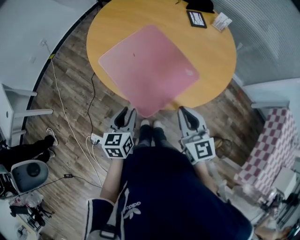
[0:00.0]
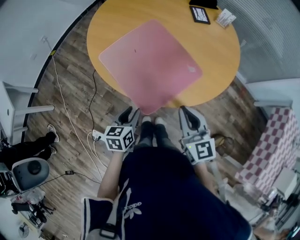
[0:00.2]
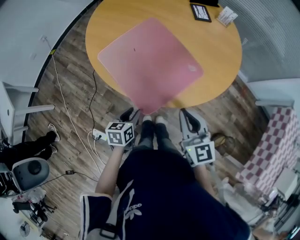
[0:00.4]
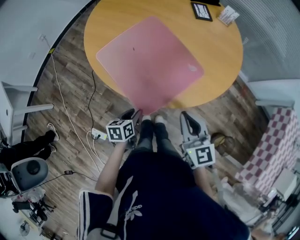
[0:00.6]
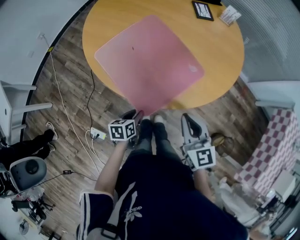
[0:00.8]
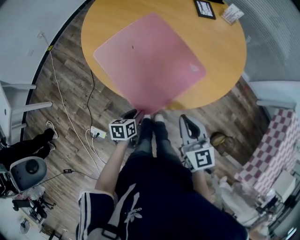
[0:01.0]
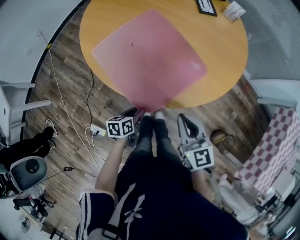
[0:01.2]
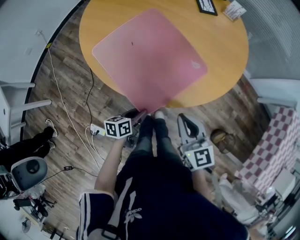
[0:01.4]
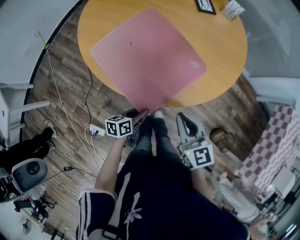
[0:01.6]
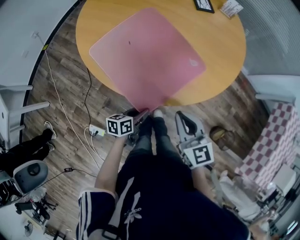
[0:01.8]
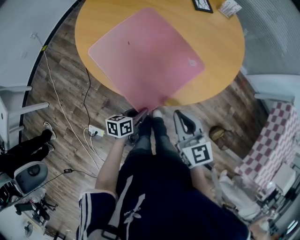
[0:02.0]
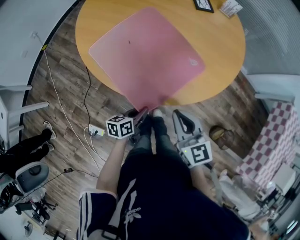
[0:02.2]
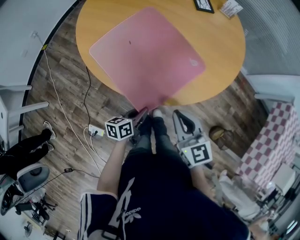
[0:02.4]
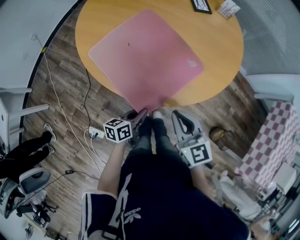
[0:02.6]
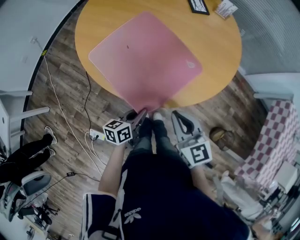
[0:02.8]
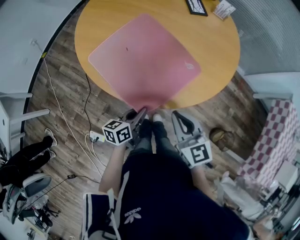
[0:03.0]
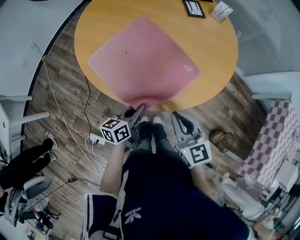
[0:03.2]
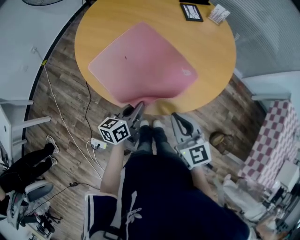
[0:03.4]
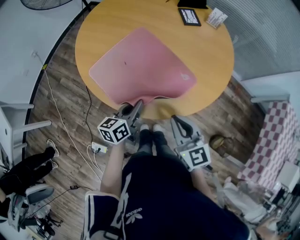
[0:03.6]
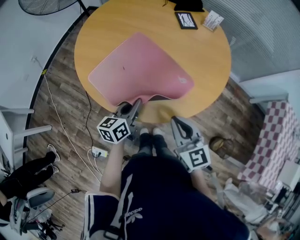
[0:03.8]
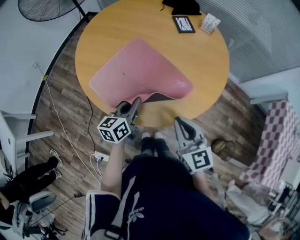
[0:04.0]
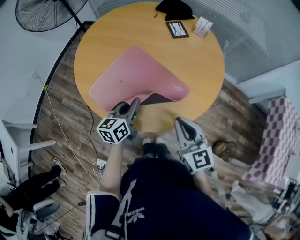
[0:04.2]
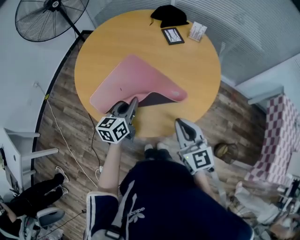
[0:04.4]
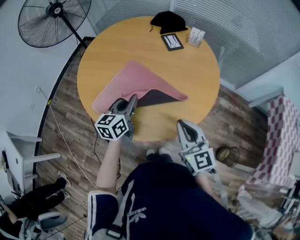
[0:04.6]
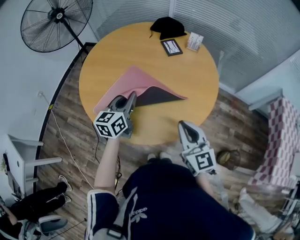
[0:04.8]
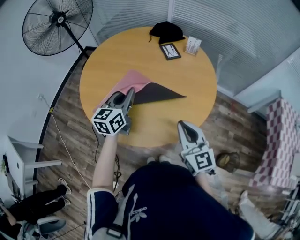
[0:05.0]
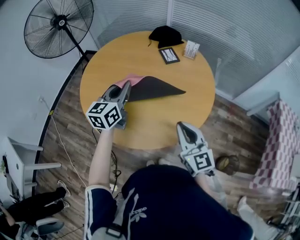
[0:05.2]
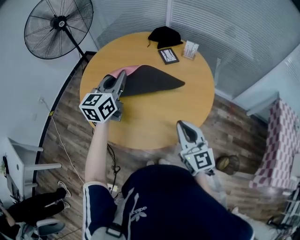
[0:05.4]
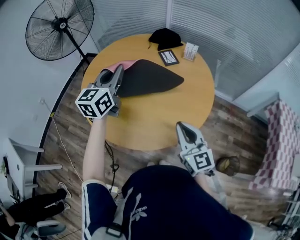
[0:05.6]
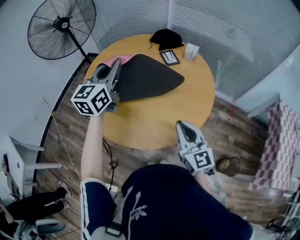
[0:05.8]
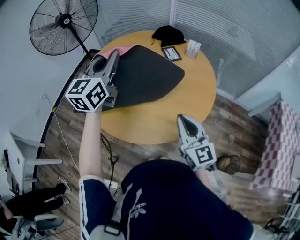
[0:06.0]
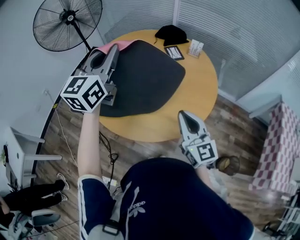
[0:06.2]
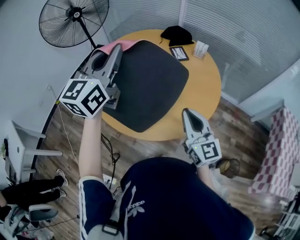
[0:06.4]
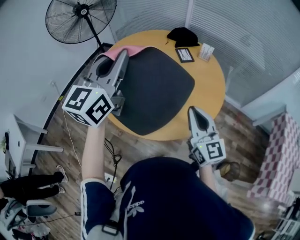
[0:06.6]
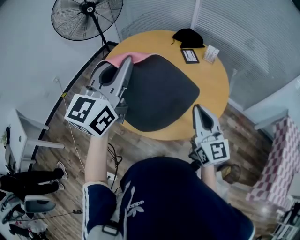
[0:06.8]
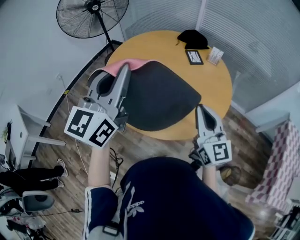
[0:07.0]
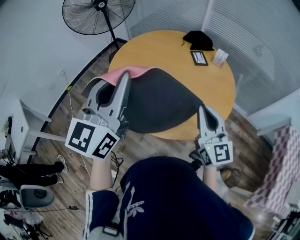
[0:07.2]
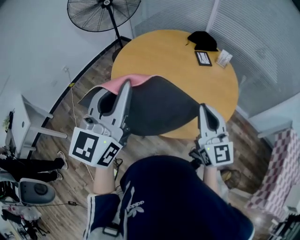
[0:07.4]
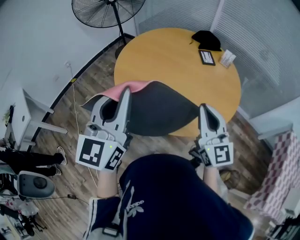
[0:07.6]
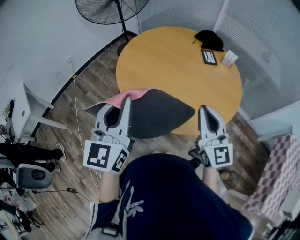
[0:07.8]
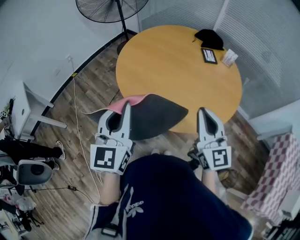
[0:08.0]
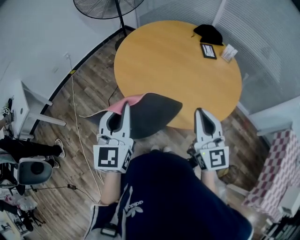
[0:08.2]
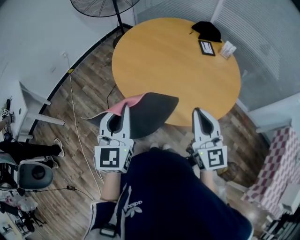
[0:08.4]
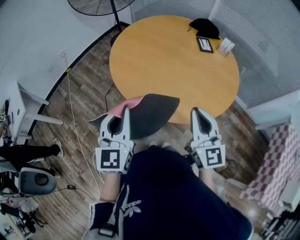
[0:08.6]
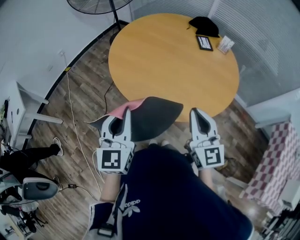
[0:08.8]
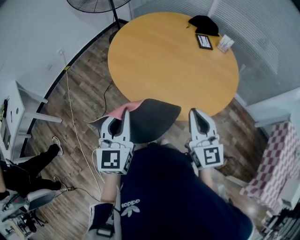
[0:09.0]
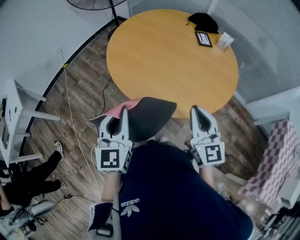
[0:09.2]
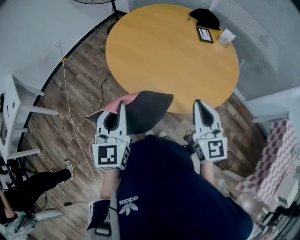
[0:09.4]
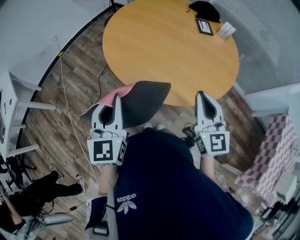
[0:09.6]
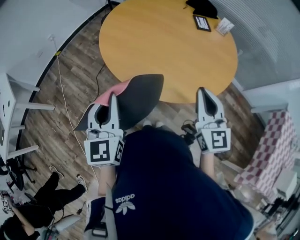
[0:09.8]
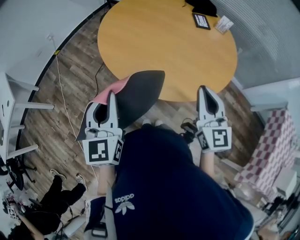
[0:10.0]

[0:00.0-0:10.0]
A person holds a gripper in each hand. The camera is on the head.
0:00.0 to 0:01.4: The left gripper travels downward by about 15 cm, and swivels approximately 40 degrees. The right gripper moves downward, about 5 cm.
0:01.4 to 0:02.8: The left gripper shifts about 5 cm upward, and closes its fingers.
0:02.8 to 0:04.2: The left gripper travels forward and upward by about 20 cm, and swivels some 20 degrees; the right gripper moves forward and upward, approximately 10 cm.
0:04.2 to 0:05.8: The left gripper is displaced upward and forward by about 30 cm, and turns by approximately 30 degrees. The right gripper travels upward by roughly 5 cm.
0:05.8 to 0:07.2: The right gripper moves upward, some 5 cm. The left gripper goes roughly 20 cm backward.
0:07.2 to 0:08.6: The right gripper shifts some 5 cm backward. Meanwhile the left gripper travels downward and backward by approximately 20 cm, and changes its angle by roughly 30 degrees.
0:08.6 to 0:10.0: The right gripper goes approximately 5 cm to the right.

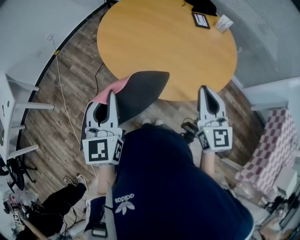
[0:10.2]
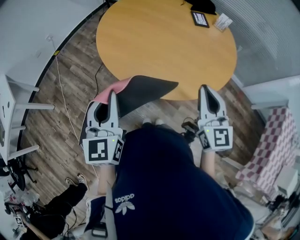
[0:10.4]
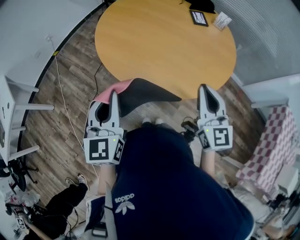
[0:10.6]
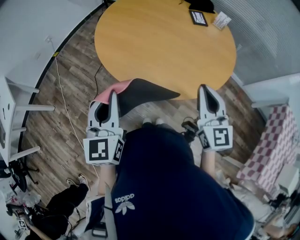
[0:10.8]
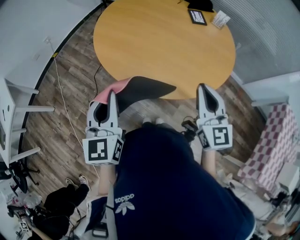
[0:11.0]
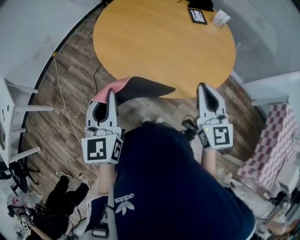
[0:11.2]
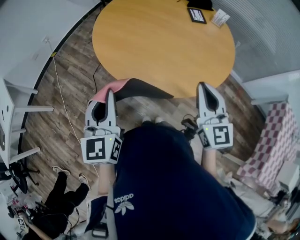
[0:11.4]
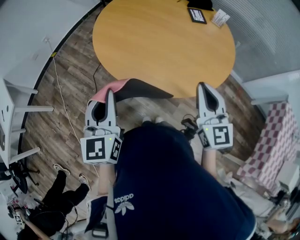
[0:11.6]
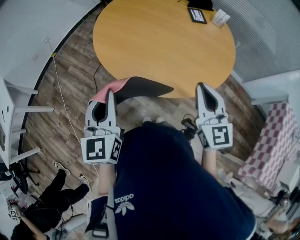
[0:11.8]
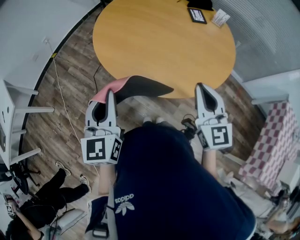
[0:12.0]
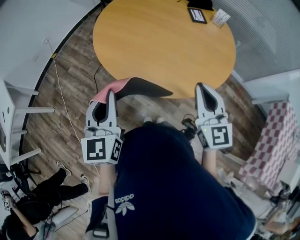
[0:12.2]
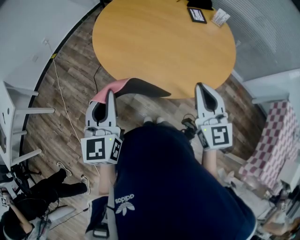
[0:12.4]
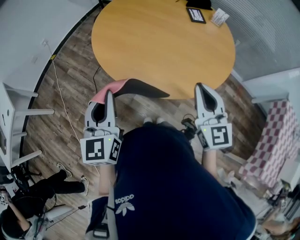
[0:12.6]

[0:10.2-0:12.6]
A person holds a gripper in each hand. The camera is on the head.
0:10.2 to 0:12.6: The grippers make only small movements.

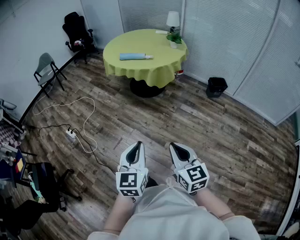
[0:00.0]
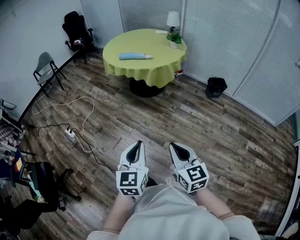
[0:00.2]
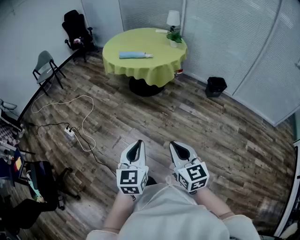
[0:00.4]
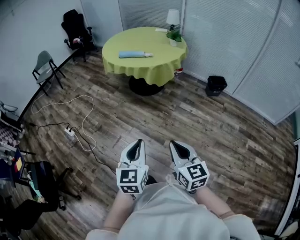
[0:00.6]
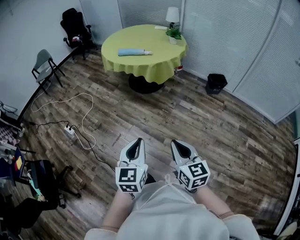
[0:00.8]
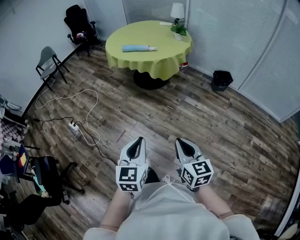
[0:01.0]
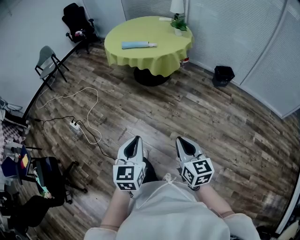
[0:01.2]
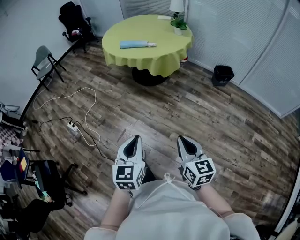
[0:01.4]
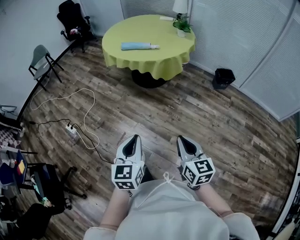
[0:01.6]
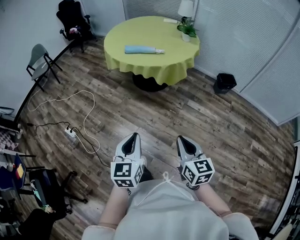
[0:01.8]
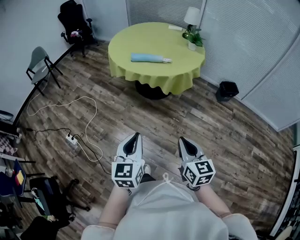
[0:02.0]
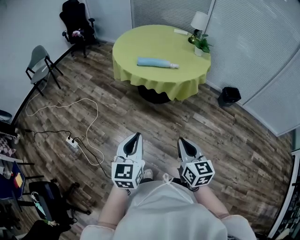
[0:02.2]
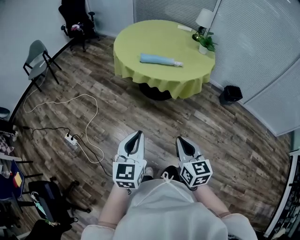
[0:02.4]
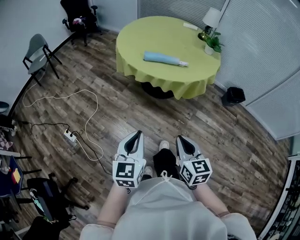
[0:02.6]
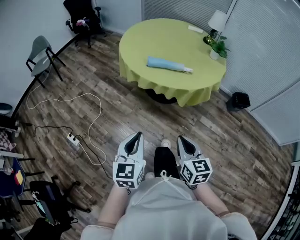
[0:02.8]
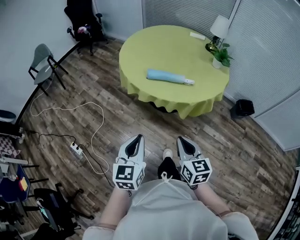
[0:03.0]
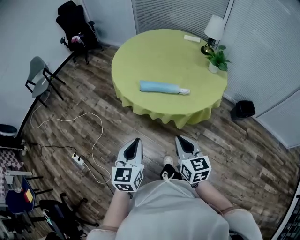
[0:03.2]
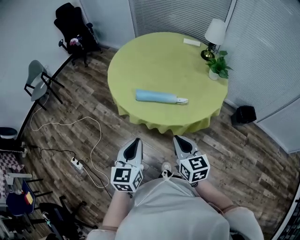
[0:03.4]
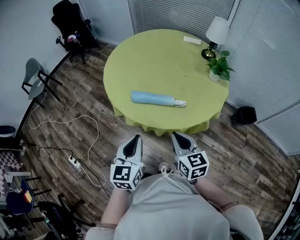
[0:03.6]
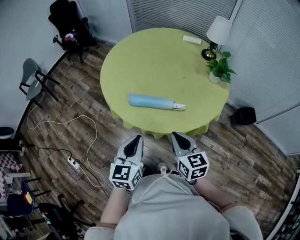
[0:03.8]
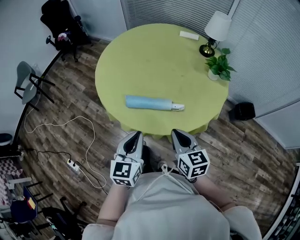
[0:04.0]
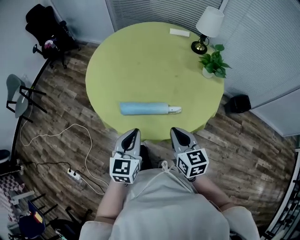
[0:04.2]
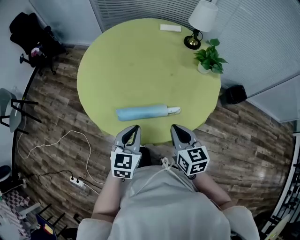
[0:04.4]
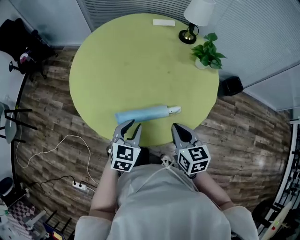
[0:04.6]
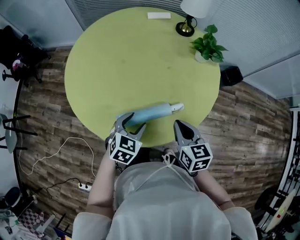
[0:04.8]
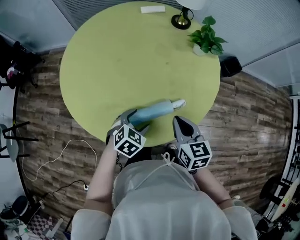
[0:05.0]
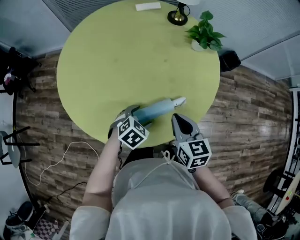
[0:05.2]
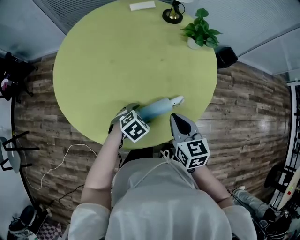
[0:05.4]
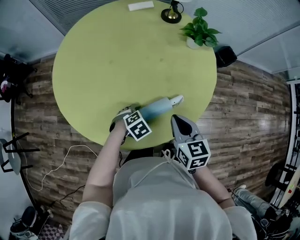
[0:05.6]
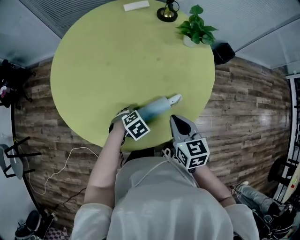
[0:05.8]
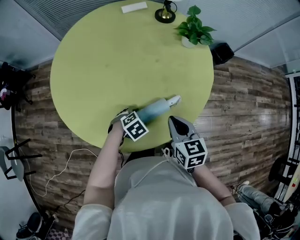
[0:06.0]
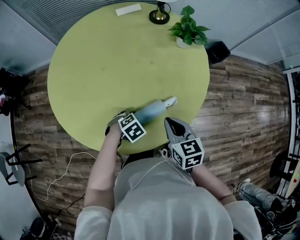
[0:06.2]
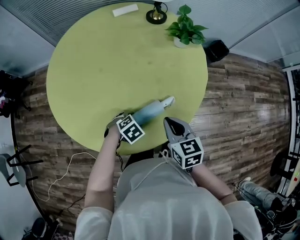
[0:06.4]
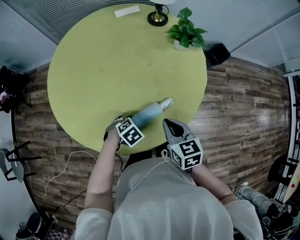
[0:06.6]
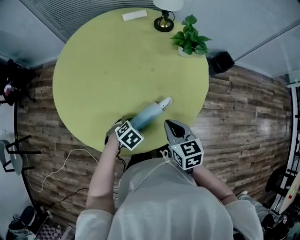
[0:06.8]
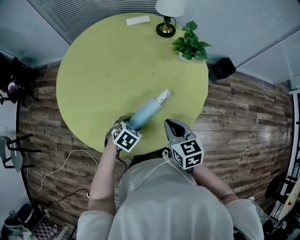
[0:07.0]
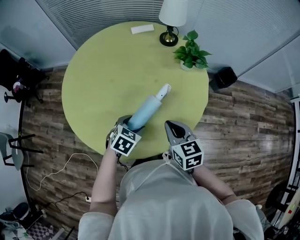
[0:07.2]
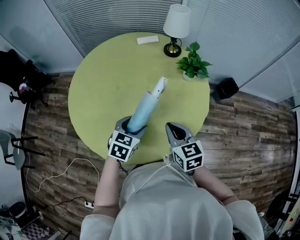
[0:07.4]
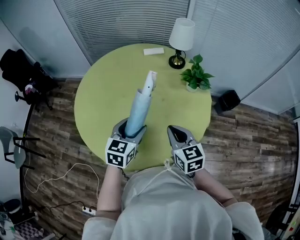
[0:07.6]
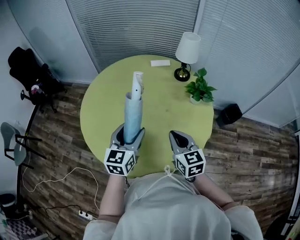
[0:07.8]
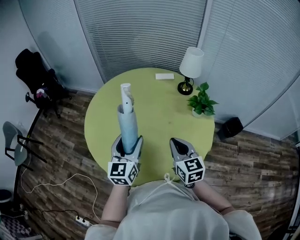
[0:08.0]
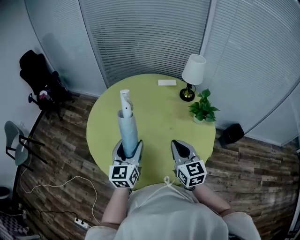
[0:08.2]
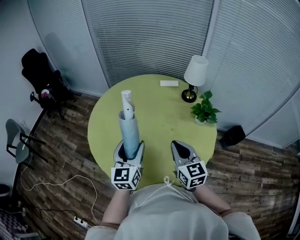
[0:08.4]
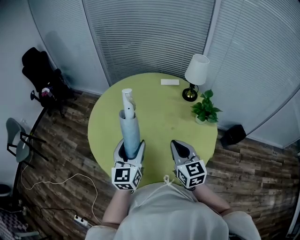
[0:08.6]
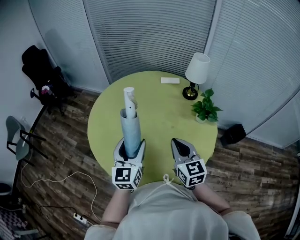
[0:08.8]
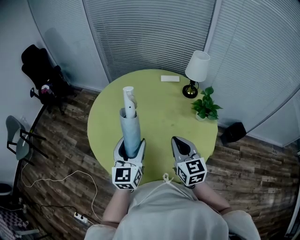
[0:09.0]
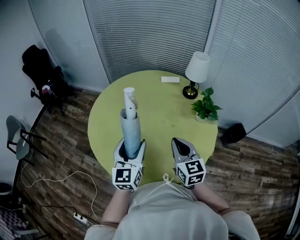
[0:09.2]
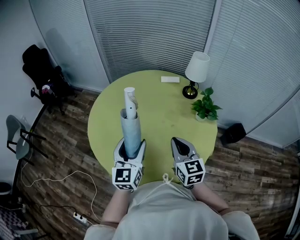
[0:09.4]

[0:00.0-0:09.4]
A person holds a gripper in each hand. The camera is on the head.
0:00.0 to 0:01.6: The left gripper travels forward and to the left by approximately 15 cm. The right gripper goes roughly 15 cm forward.
0:01.6 to 0:03.2: Both grippers are carried forward, some 50 cm.
0:03.2 to 0:04.8: The left gripper shifts by approximately 50 cm, turns by some 60 degrees, and opens its fingers, while the right gripper shifts by about 35 cm, and changes its angle by about 30 degrees.
0:04.8 to 0:06.2: The left gripper heads downward, covering about 15 cm, and angles its fingers downward, by roughly 30 degrees.
0:06.2 to 0:07.8: The left gripper moves upward, about 30 cm, and tilts its fingers some 60 degrees upward. The right gripper moves upward, some 15 cm, and turns by approximately 20 degrees.
0:07.8 to 0:09.4: The left gripper changes place by some 5 cm.

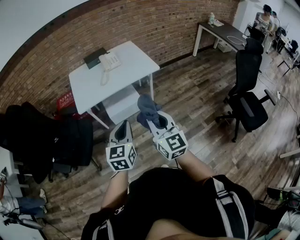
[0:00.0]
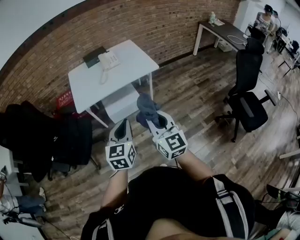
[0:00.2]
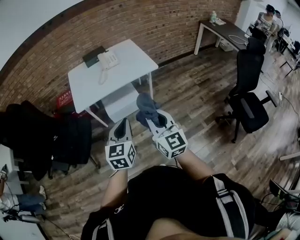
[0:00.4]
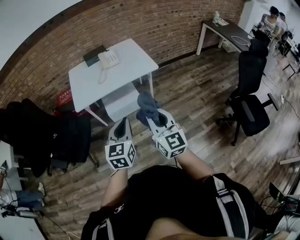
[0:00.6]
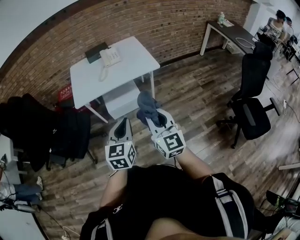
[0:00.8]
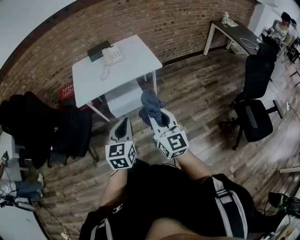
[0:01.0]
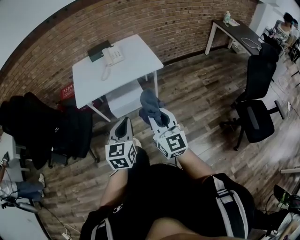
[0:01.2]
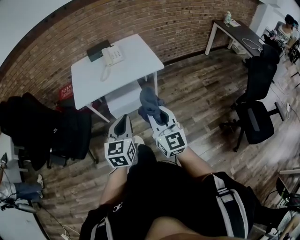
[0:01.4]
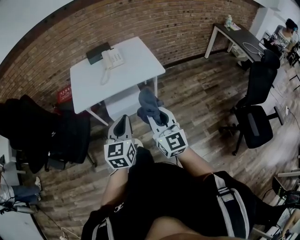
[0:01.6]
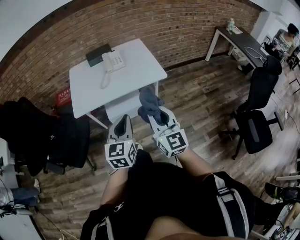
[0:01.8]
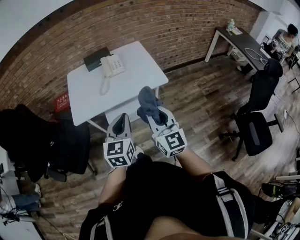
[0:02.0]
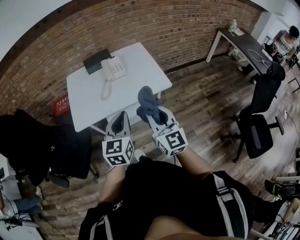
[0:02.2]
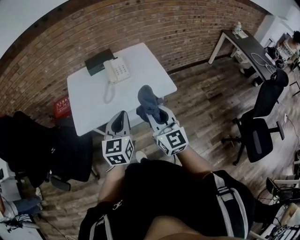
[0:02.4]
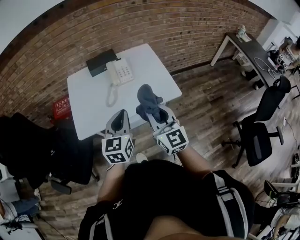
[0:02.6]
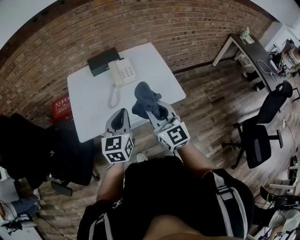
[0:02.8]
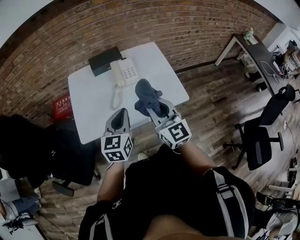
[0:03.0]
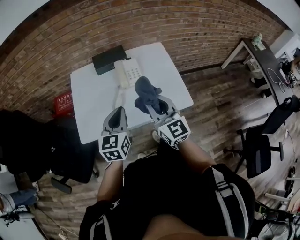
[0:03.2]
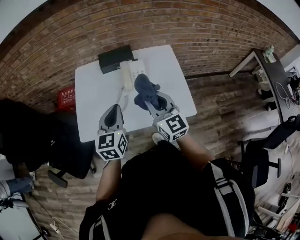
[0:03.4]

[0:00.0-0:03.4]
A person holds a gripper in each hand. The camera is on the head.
0:00.0 to 0:01.6: The two grippers go about 10 cm forward and to the right.
0:01.6 to 0:03.4: The two grippers travel together, forward, some 50 cm.
